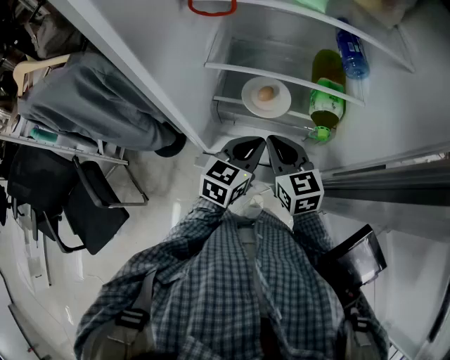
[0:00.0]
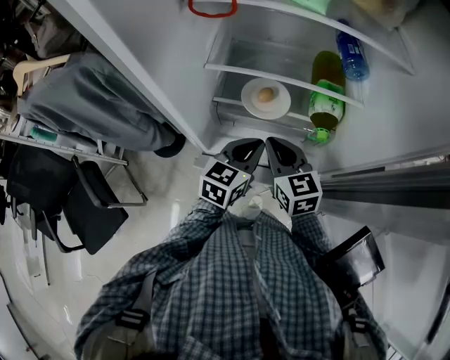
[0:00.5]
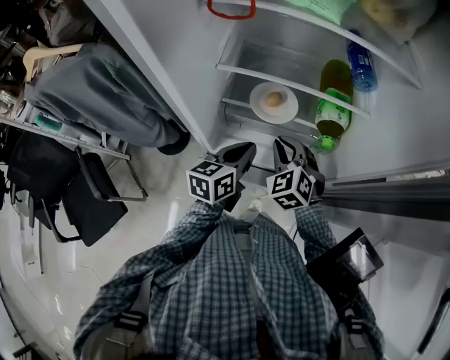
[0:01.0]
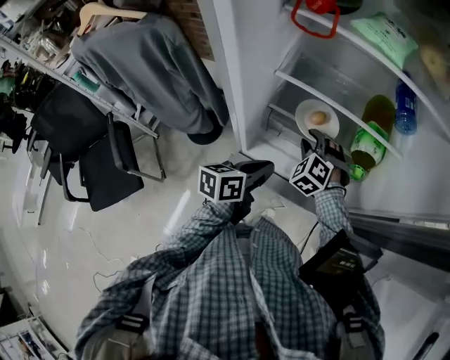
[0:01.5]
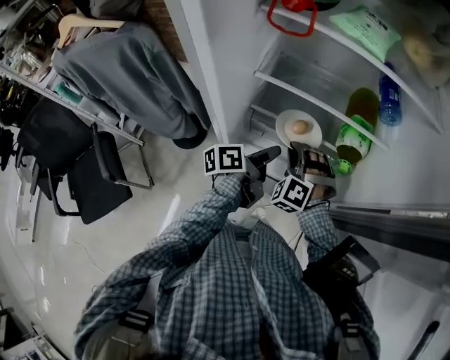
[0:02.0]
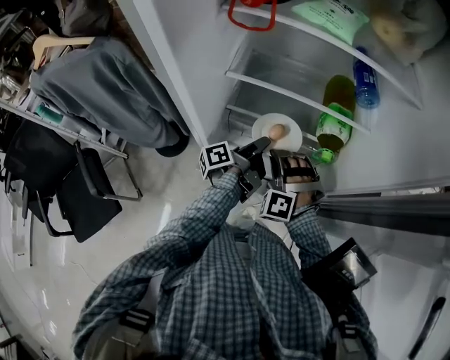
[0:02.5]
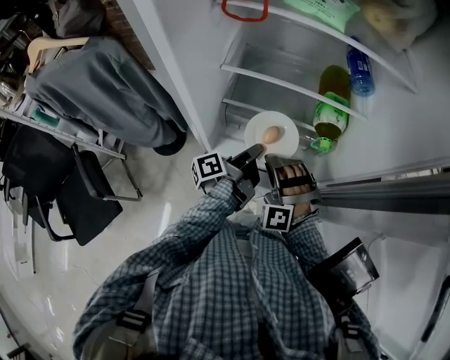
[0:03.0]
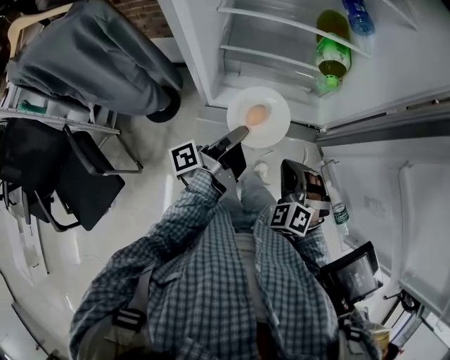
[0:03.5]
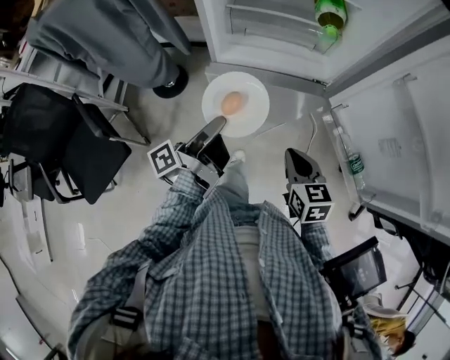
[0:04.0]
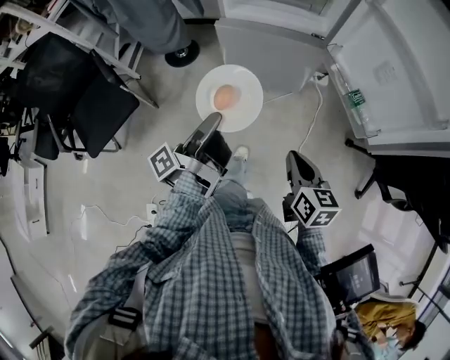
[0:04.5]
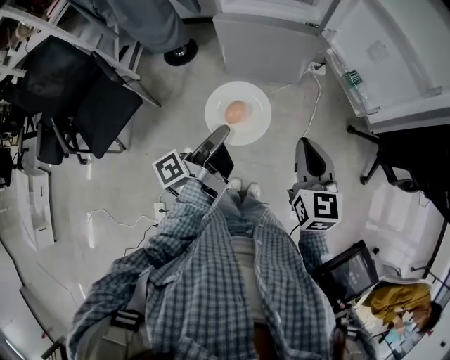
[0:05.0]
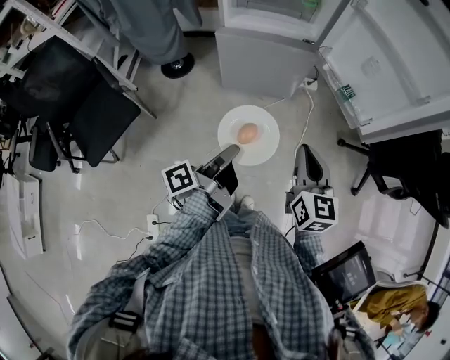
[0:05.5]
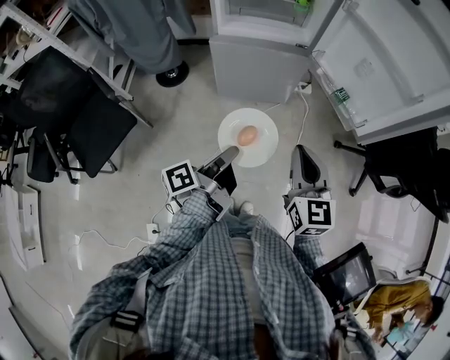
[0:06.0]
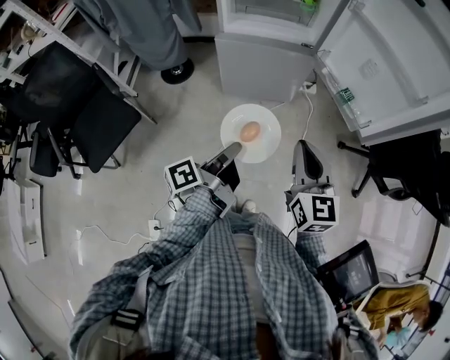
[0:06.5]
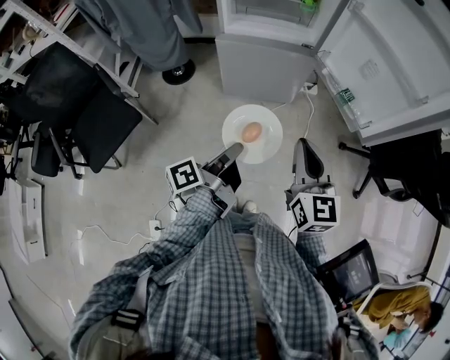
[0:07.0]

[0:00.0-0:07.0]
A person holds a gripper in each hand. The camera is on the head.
0.0 to 2.0 s: The right gripper travels downward by roughly 5 cm, rotates around the line of its fingers by about 70 degrees, counterclockwise from behind, and opens, then closes once more.
2.0 to 3.5 s: The right gripper changes place by some 25 cm, and changes its angle by roughly 20 degrees.
3.5 to 5.0 s: The right gripper moves about 40 cm, and twists approximately 60 degrees clockwise, seen from behind.
5.0 to 7.0 s: The right gripper moves about 5 cm.

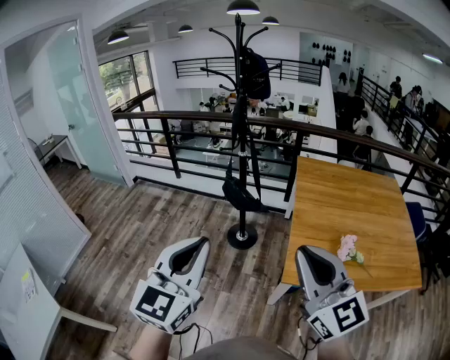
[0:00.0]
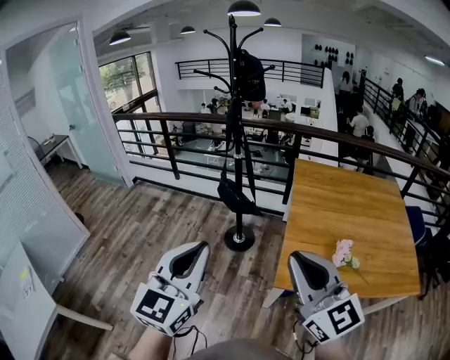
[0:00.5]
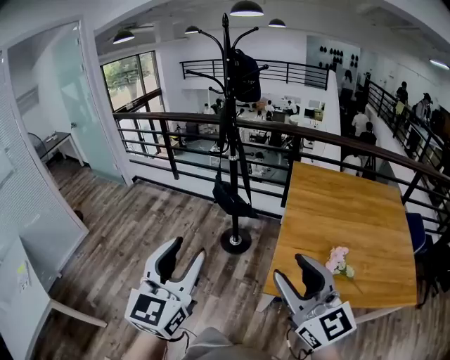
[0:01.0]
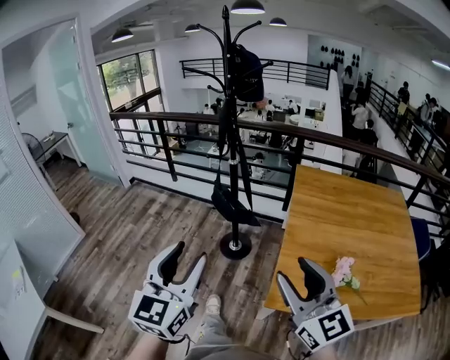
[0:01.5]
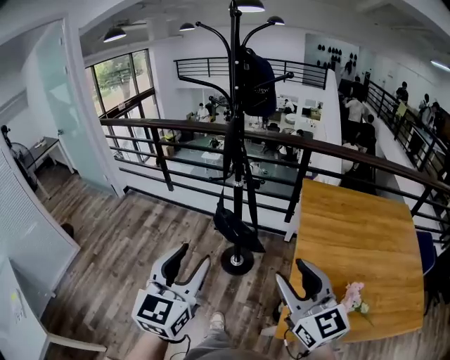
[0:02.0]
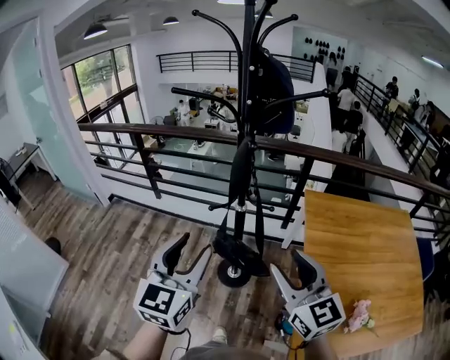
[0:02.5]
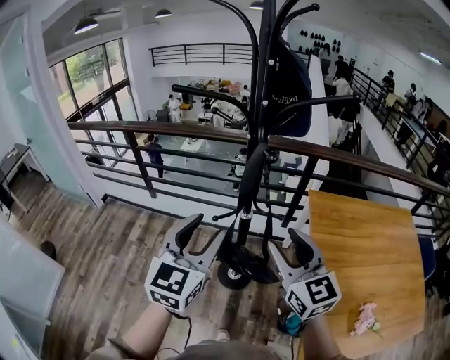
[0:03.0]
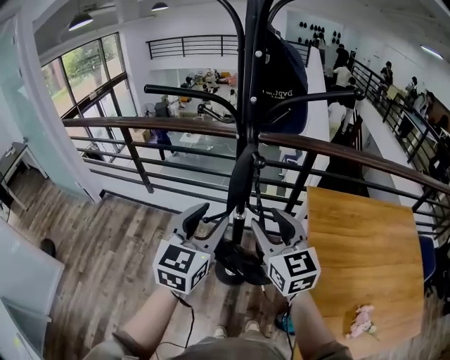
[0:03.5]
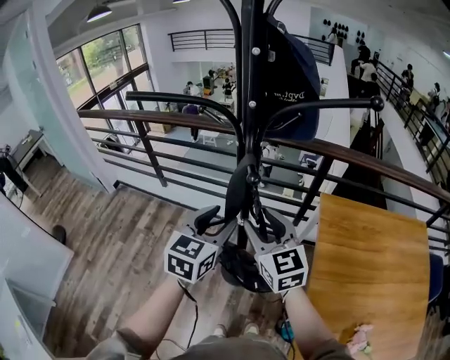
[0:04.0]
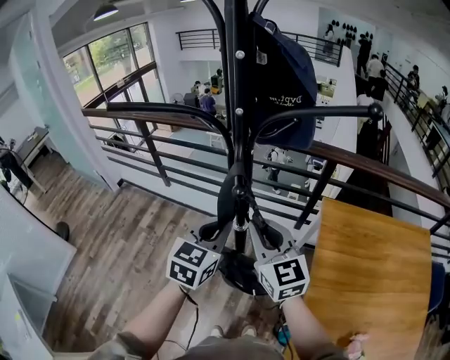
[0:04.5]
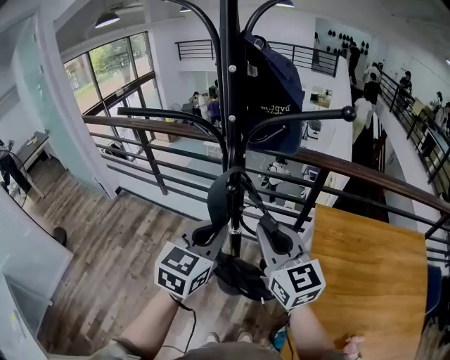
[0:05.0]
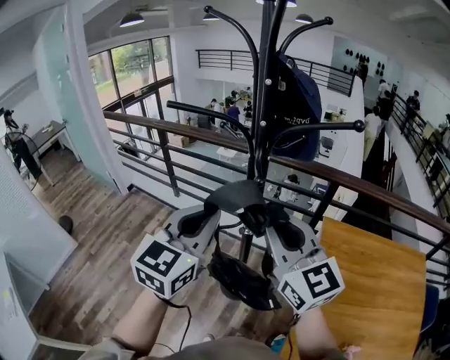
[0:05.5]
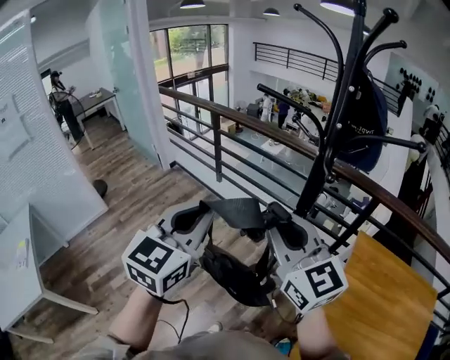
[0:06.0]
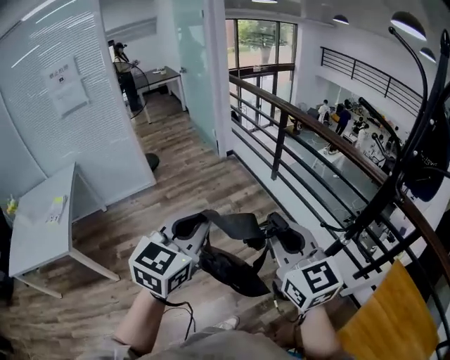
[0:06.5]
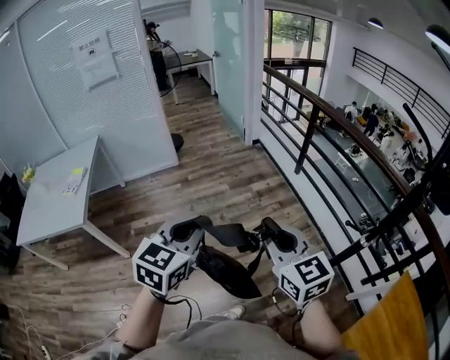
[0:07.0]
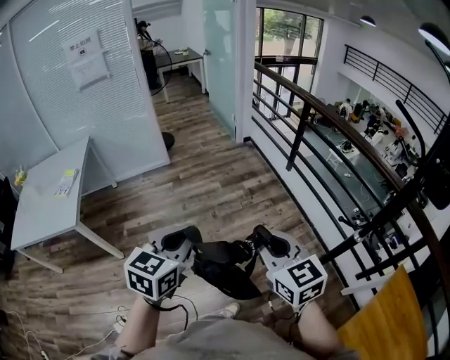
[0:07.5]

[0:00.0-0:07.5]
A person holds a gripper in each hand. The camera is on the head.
0.0 to 2.0 s: Both grippers move forward, roughly 25 cm. The right gripper opens its fingers; the left gripper opens its fingers.
2.0 to 4.0 s: The two grippers go approximately 40 cm forward.
4.0 to 5.5 s: The grippers both shift upward and backward by about 15 cm. The left gripper closes. The right gripper turns by some 20 degrees, and closes up.
5.5 to 7.5 s: The right gripper changes place by about 40 cm, and changes its angle by approximately 50 degrees; the left gripper shifts by approximately 40 cm, and rotates approximately 50 degrees.

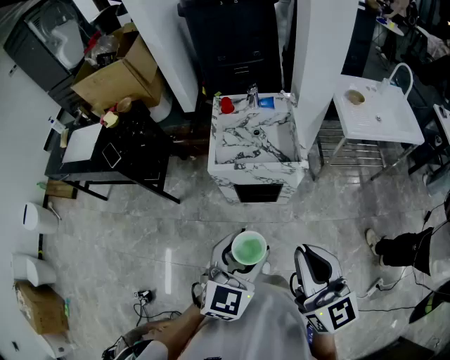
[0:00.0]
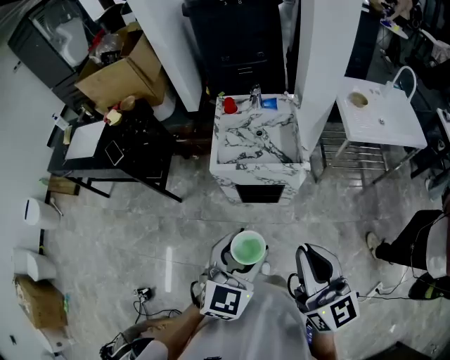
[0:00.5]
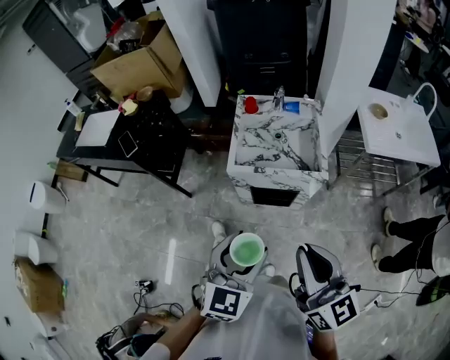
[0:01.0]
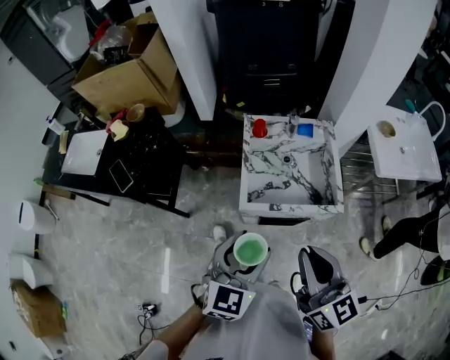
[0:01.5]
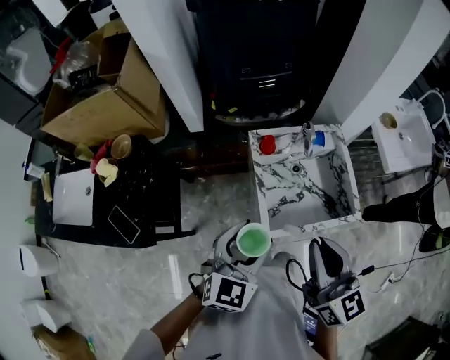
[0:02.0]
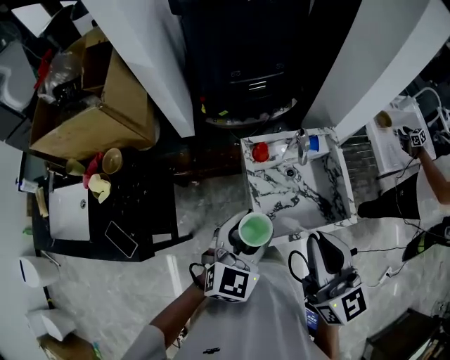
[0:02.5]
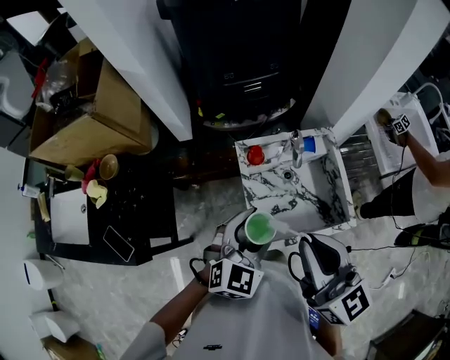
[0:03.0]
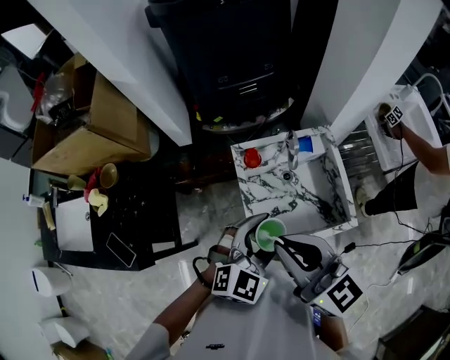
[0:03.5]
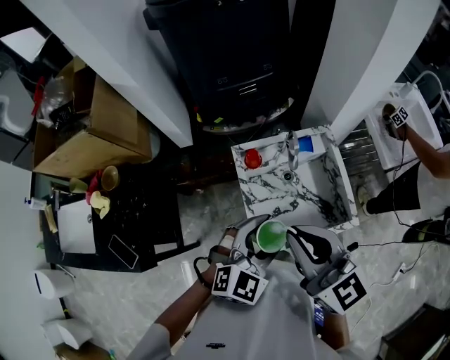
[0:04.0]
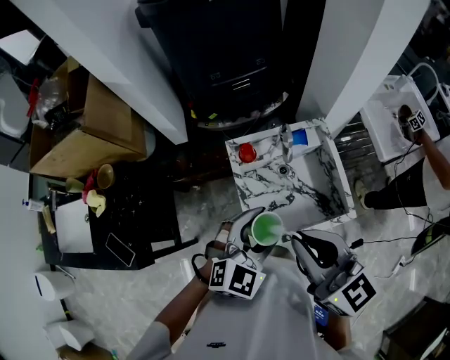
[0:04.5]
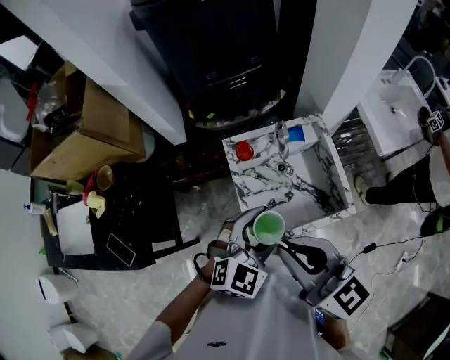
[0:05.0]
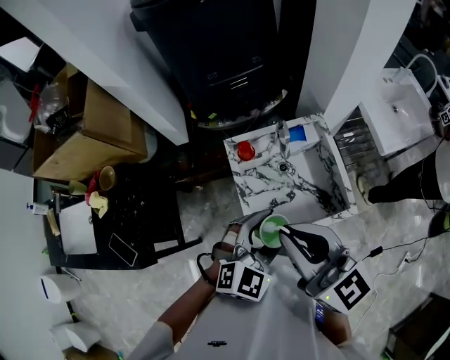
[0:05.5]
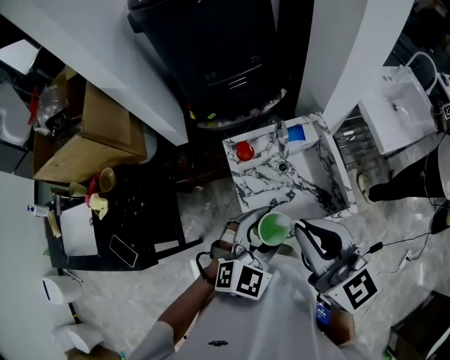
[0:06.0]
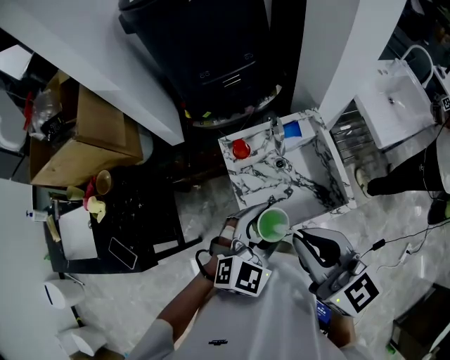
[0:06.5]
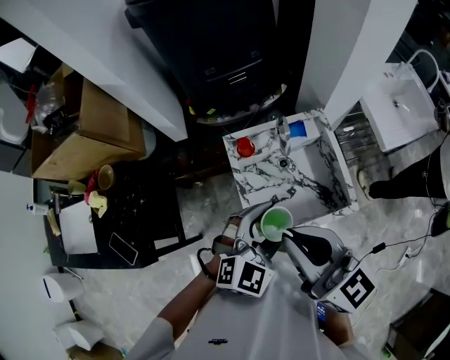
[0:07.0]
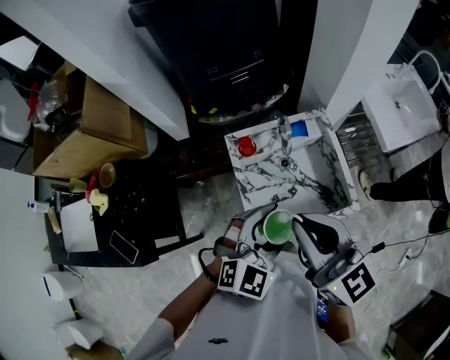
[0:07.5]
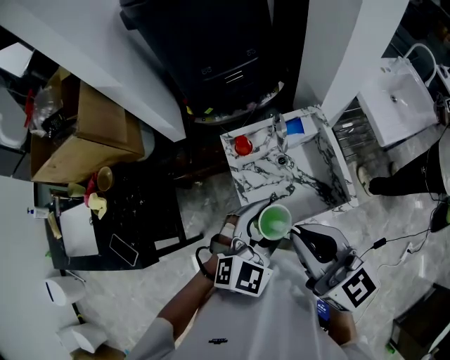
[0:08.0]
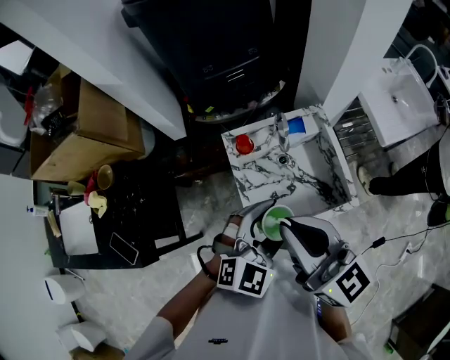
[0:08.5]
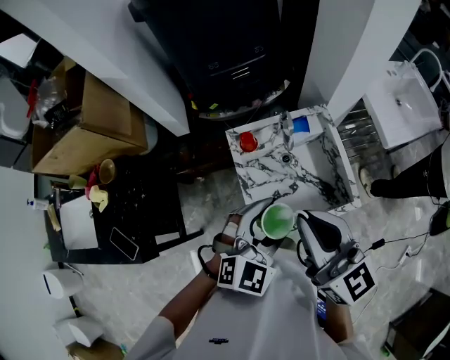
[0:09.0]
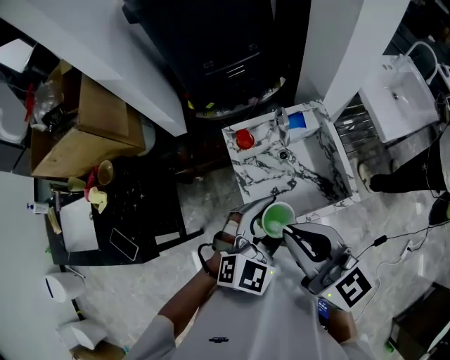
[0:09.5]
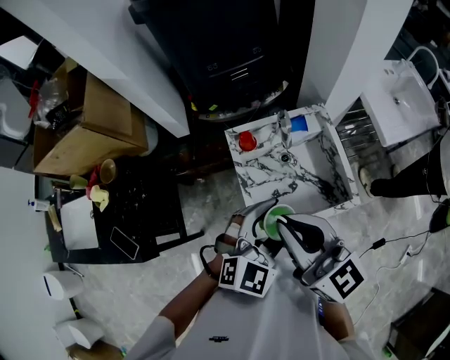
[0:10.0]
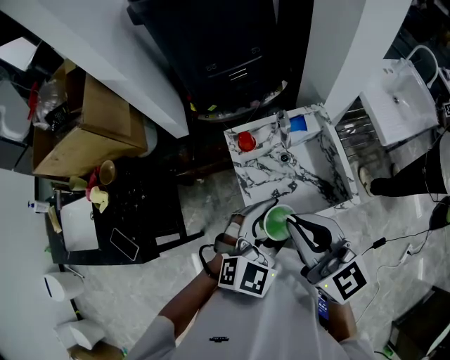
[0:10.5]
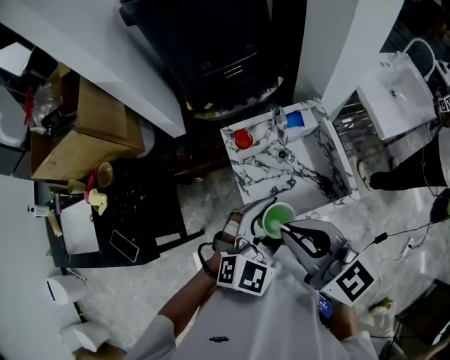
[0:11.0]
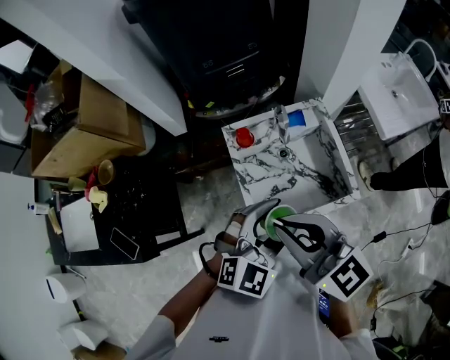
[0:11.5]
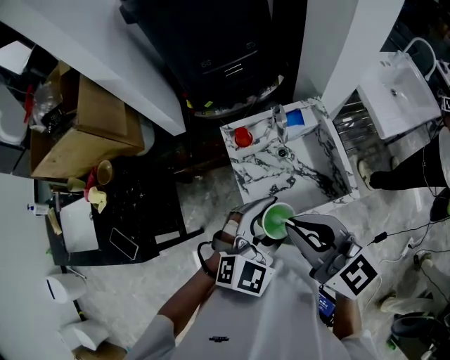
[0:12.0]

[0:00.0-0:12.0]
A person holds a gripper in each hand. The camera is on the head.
0.0 to 2.0 s: The pair of grippers is taken forward and to the left, about 40 cm.
2.0 to 4.0 s: The left gripper is displaced to the right and forward by about 10 cm, and turns by about 20 degrees, while the right gripper shifts about 10 cm forward.
4.0 to 12.0 s: The grippers make only small movements.

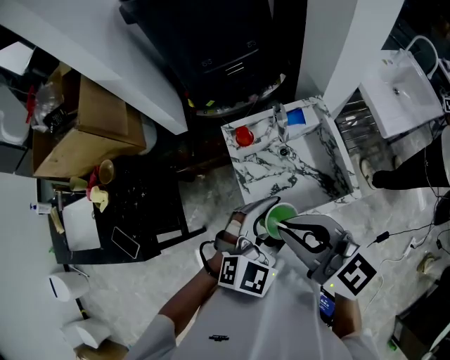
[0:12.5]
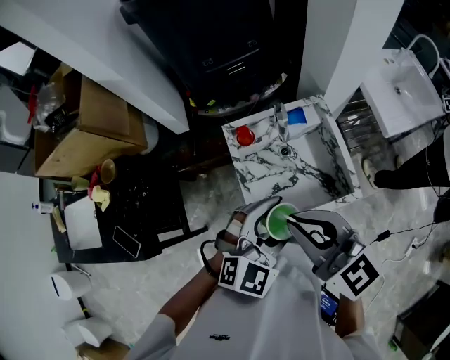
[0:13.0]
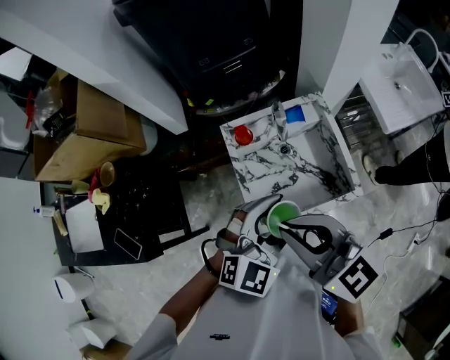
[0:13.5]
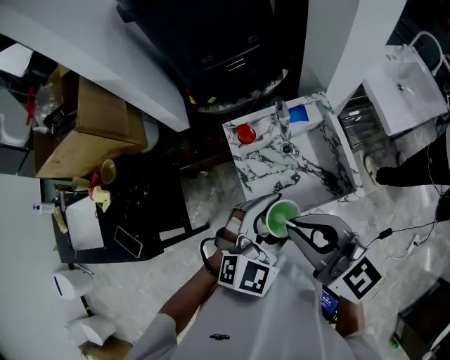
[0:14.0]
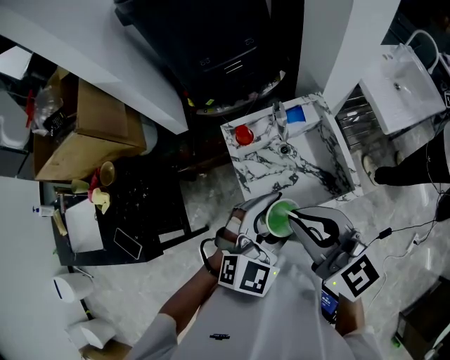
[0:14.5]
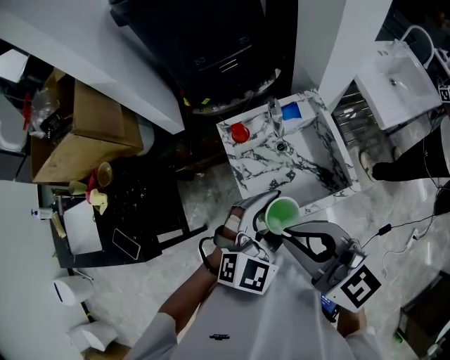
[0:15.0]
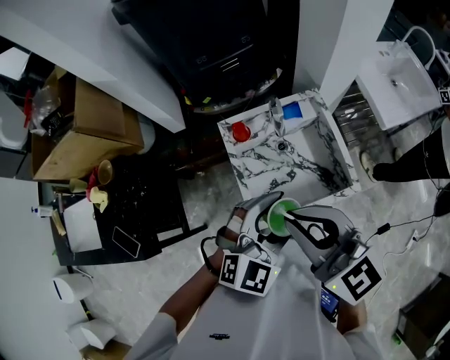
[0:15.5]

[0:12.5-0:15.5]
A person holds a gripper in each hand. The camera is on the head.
12.5 to 15.5 s: The grippers stay close to where they were, moving slightly.
